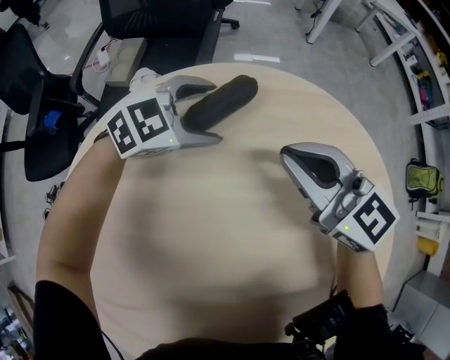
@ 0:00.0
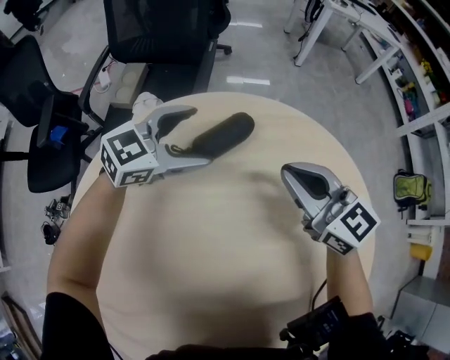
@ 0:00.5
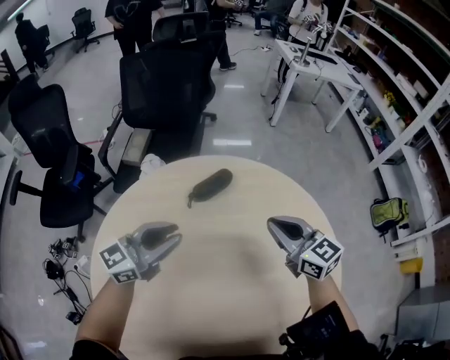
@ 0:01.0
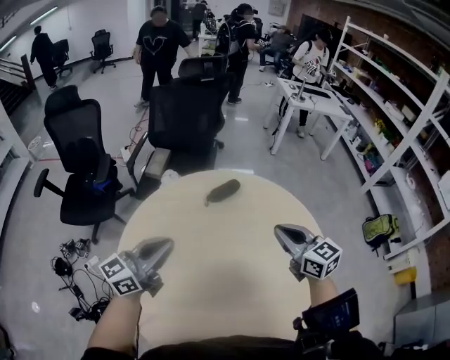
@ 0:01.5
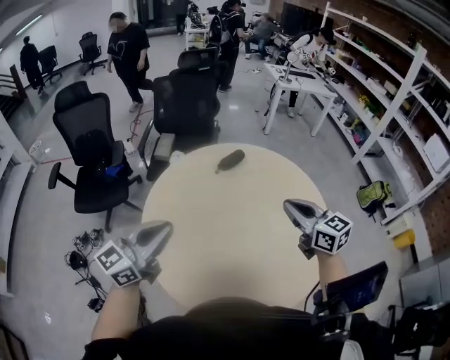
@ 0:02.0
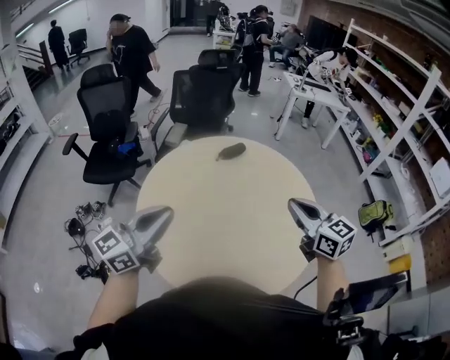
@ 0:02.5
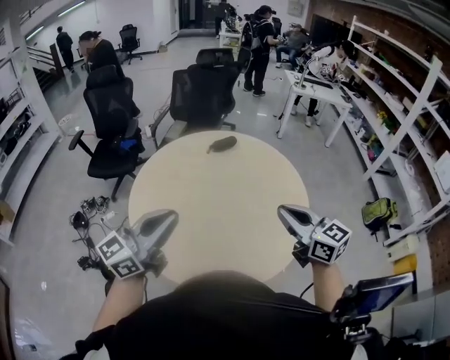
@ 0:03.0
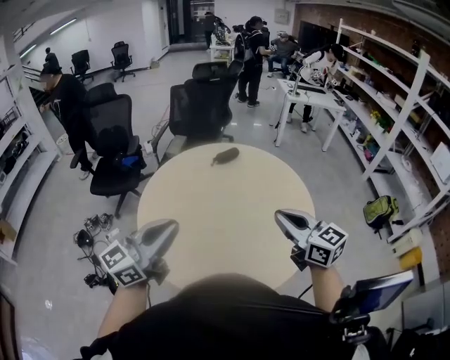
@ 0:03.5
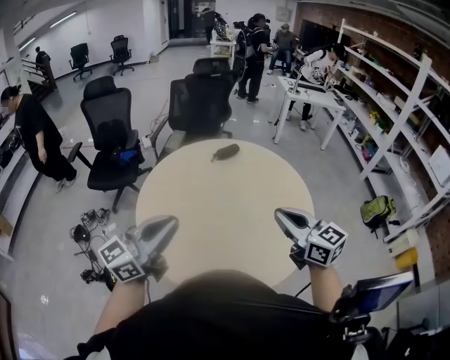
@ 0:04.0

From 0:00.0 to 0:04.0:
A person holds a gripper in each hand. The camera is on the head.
From 0:00.0 to 0:02.0: The grippers both shift backward and upward by approximately 60 cm. The right gripper turns by about 20 degrees; the left gripper angles its fingers upward, by some 40 degrees, and closes its fingers.
From 0:02.0 to 0:04.0: The right gripper moves backward, approximately 20 cm. Meanwhile the left gripper travels backward and to the right by about 25 cm.

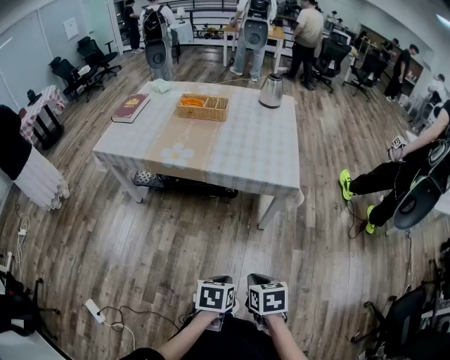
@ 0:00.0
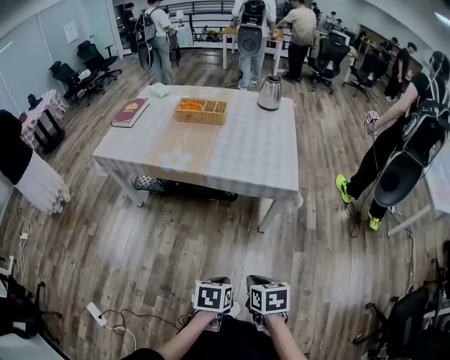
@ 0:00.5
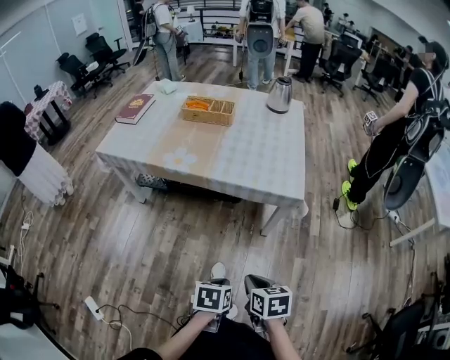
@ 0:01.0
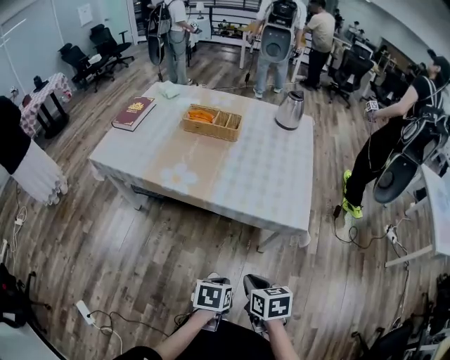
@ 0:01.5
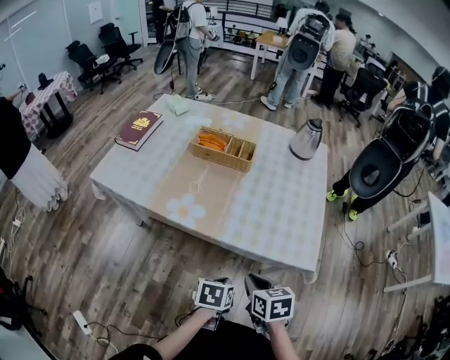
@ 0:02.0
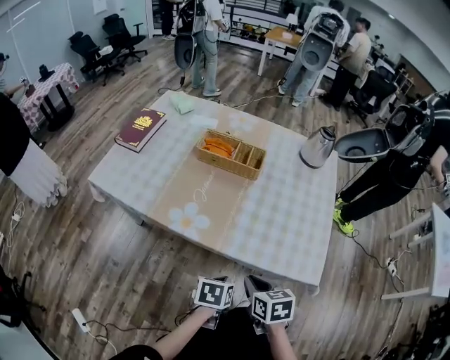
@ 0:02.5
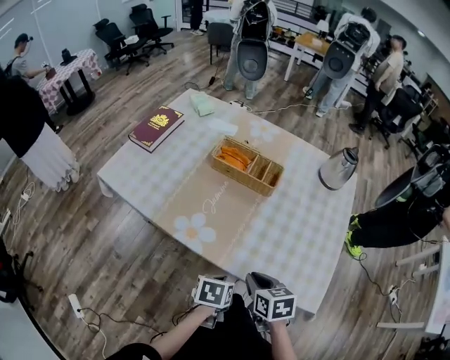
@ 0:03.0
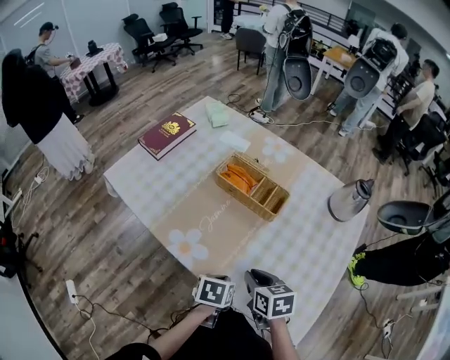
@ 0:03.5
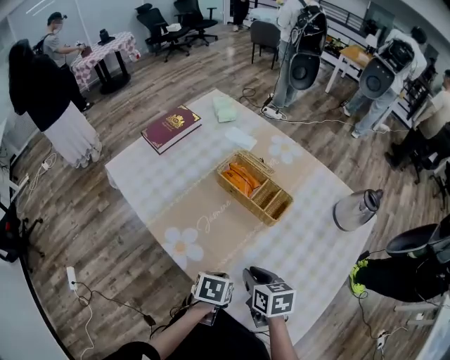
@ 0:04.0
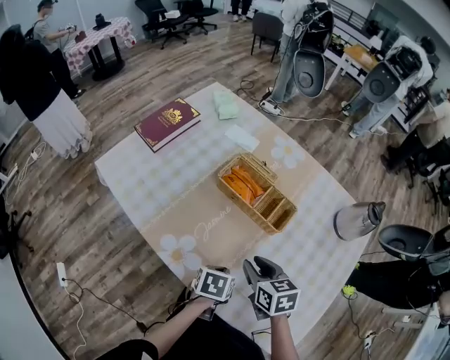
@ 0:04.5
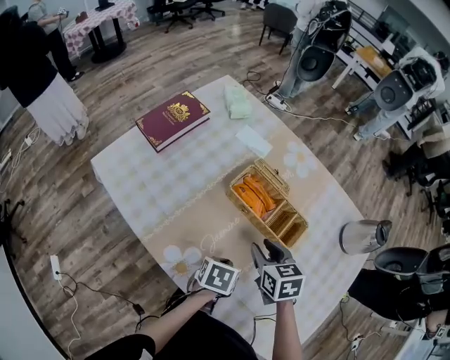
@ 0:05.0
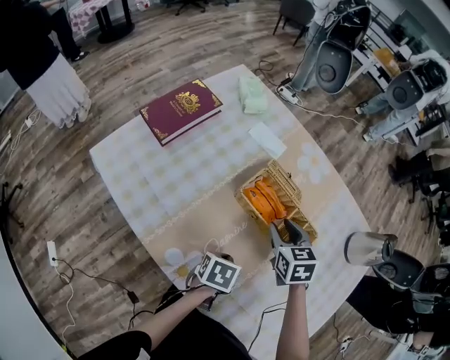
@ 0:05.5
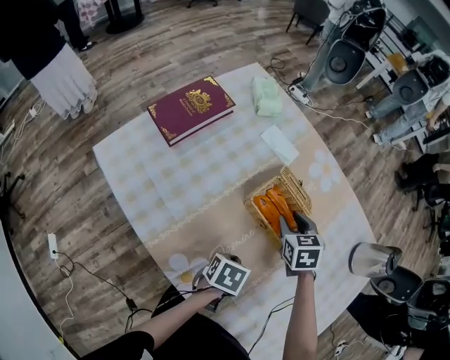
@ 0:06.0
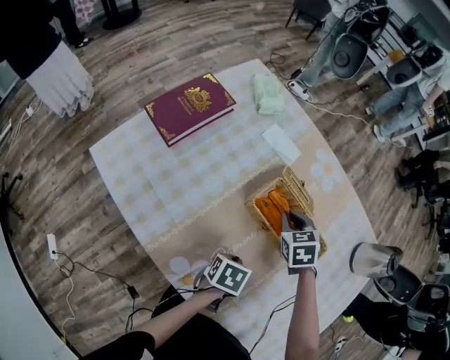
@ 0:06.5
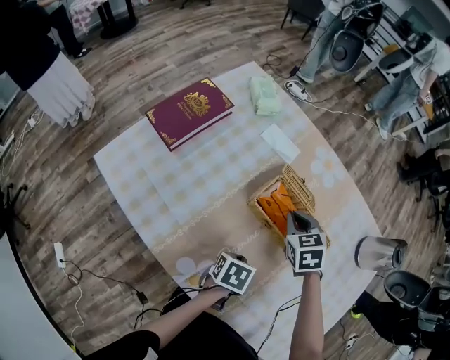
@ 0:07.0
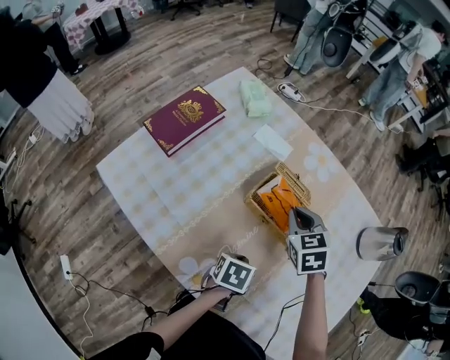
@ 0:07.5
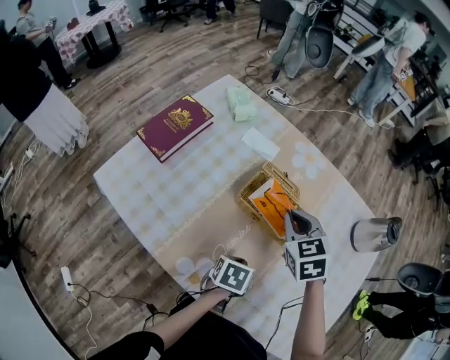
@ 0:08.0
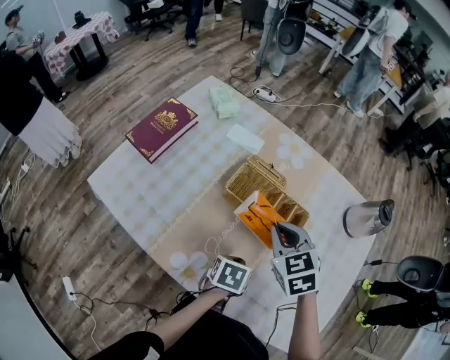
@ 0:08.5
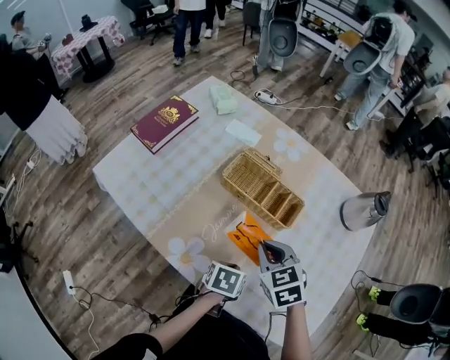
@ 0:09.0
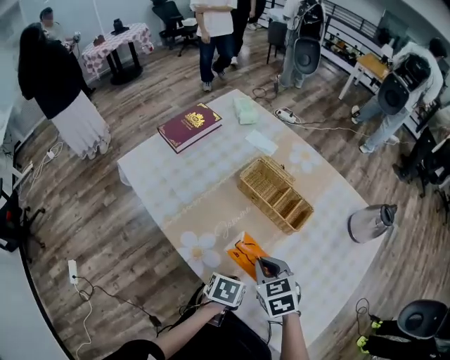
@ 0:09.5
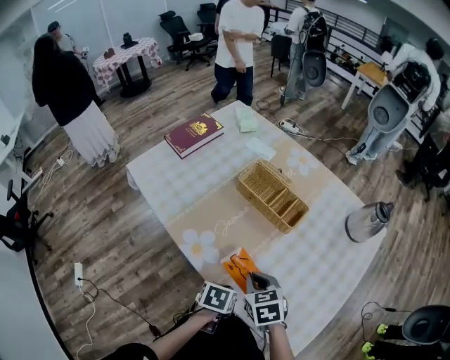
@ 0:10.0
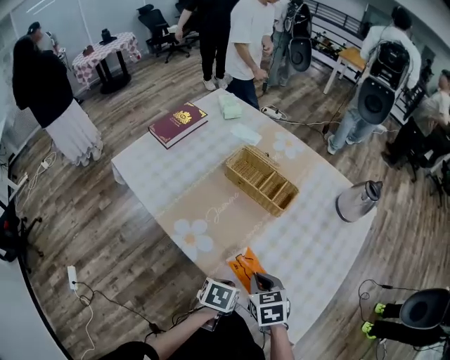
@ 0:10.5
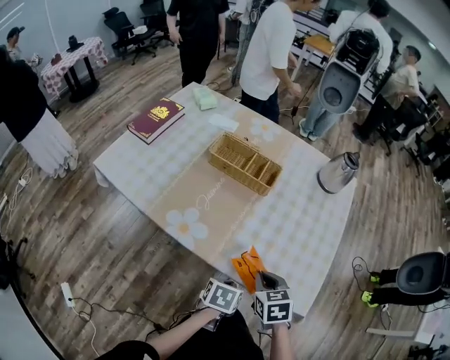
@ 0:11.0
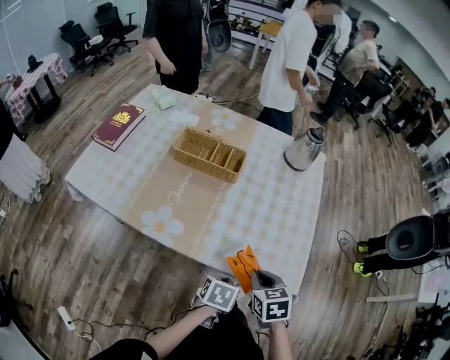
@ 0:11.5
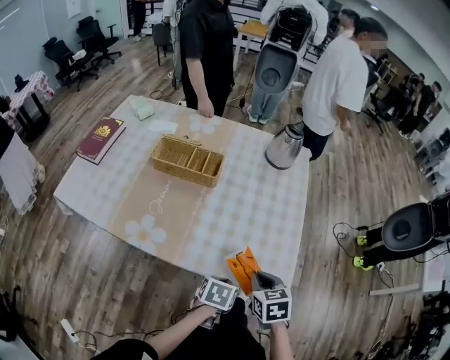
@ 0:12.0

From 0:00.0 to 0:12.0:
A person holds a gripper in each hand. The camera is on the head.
From 0:00.0 to 0:02.0: Both grippers move forward, roughly 30 cm.
From 0:02.0 to 0:04.0: Both grippers travel together forward, about 30 cm. The right gripper rotates some 20 degrees. The left gripper changes its angle by roughly 20 degrees.
From 0:04.0 to 0:06.0: The left gripper travels forward and to the left by some 20 cm. Meanwhile the right gripper shifts some 30 cm forward, turns by approximately 30 degrees, and opens its fingers.
From 0:06.0 to 0:08.0: The right gripper heads upward, covering roughly 10 cm, and closes.
From 0:08.0 to 0:10.0: The left gripper is displaced backward by some 20 cm. The right gripper moves backward, approximately 30 cm.
From 0:10.0 to 0:12.0: The left gripper moves roughly 15 cm, and rotates approximately 30 degrees, while the right gripper moves about 25 cm, and changes its angle by approximately 40 degrees.

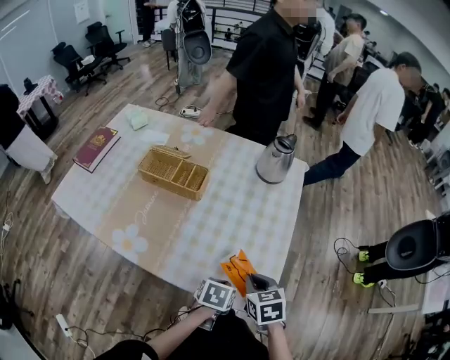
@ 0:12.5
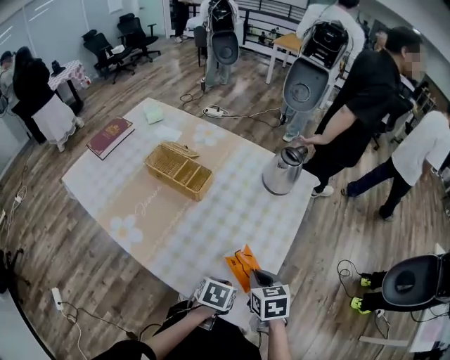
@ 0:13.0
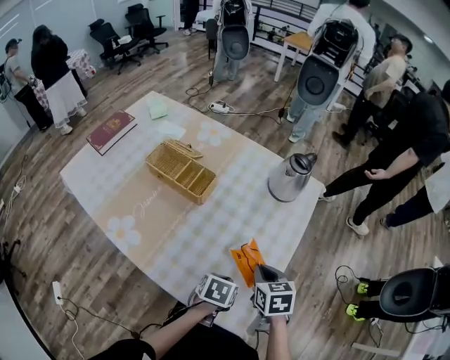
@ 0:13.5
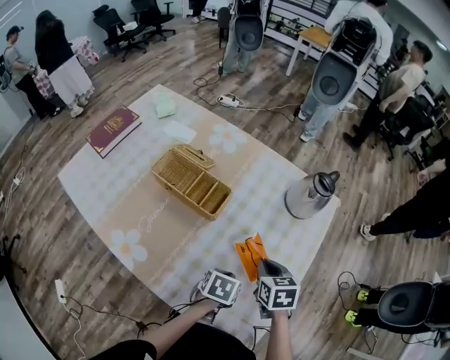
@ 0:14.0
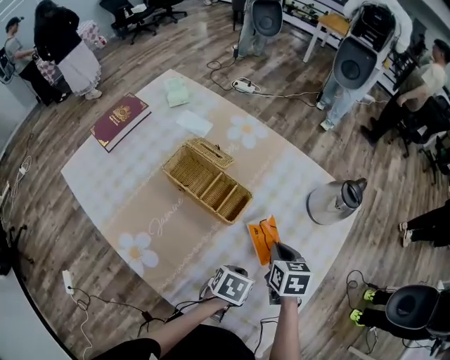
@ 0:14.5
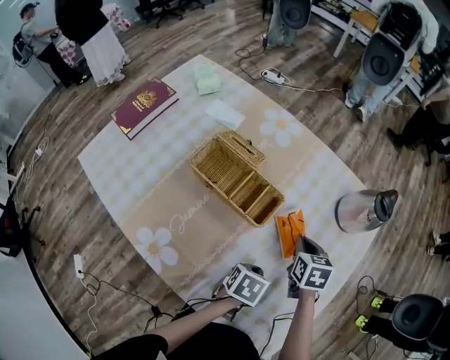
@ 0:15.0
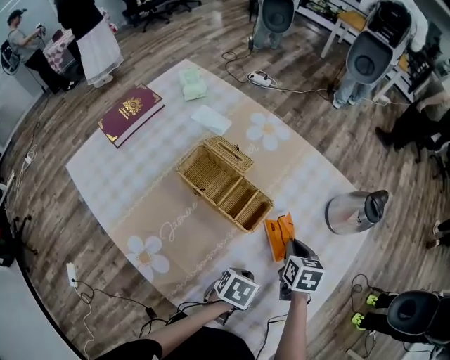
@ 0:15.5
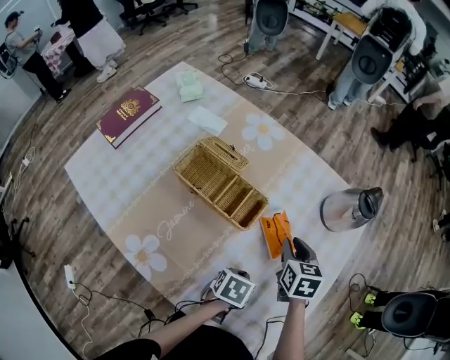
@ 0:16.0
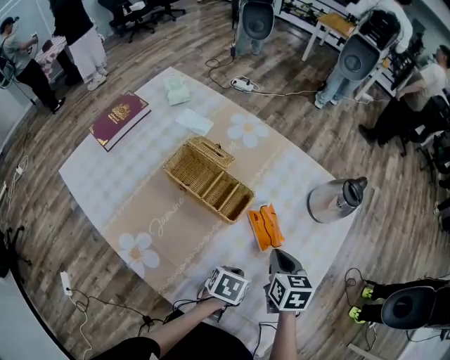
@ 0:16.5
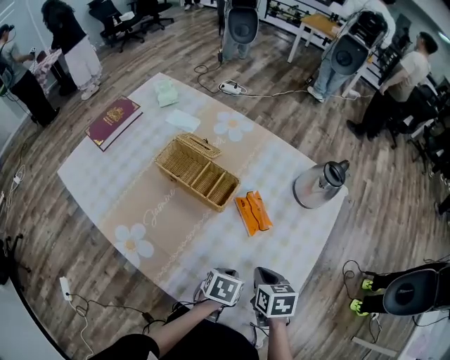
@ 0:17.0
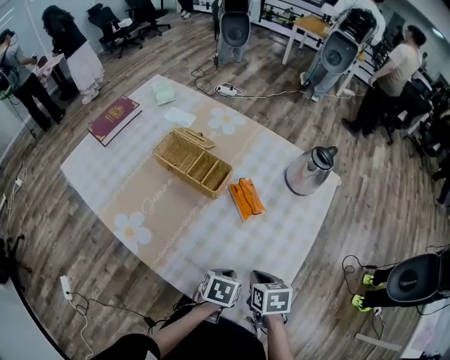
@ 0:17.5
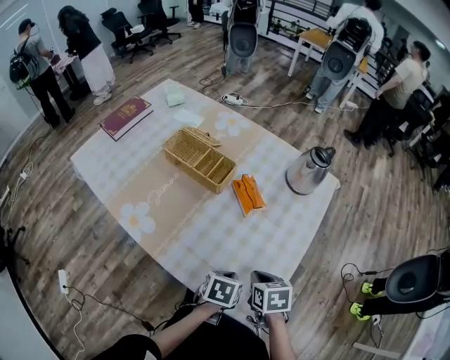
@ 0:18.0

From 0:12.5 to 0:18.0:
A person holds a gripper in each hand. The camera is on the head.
From 0:12.5 to 0:14.5: The two grippers go approximately 25 cm forward.
From 0:14.5 to 0:16.0: The grippers move only a little.
From 0:16.0 to 0:18.0: The right gripper goes about 25 cm backward, and closes its fingers; the left gripper heads backward and to the right, covering some 15 cm.

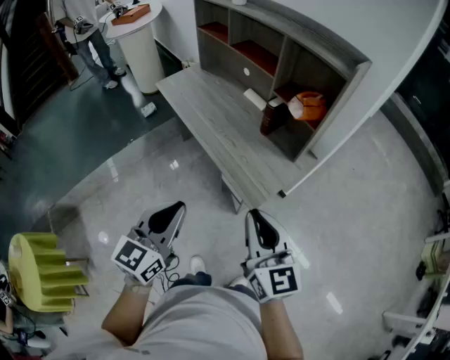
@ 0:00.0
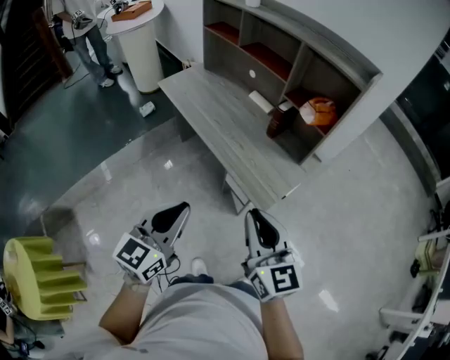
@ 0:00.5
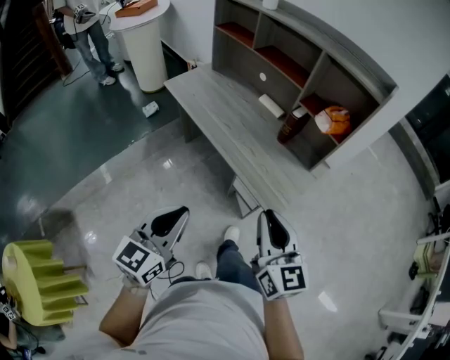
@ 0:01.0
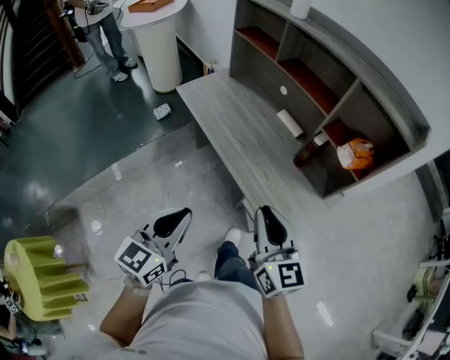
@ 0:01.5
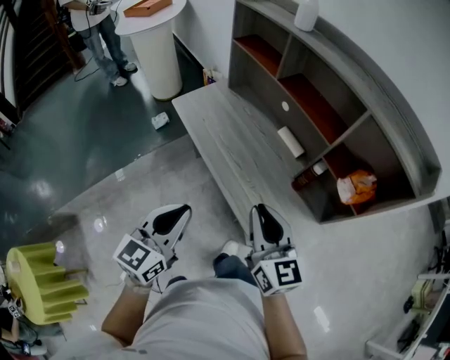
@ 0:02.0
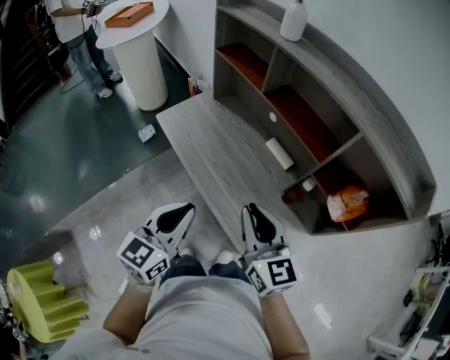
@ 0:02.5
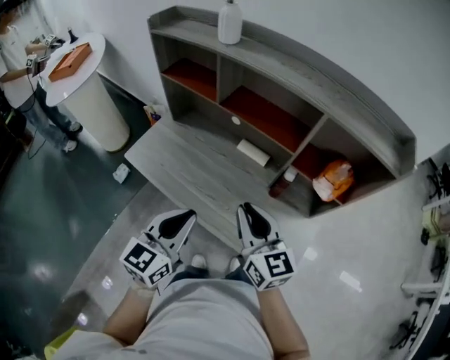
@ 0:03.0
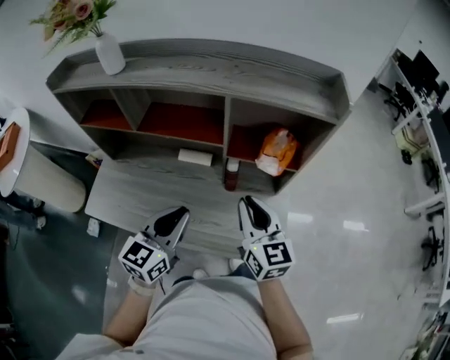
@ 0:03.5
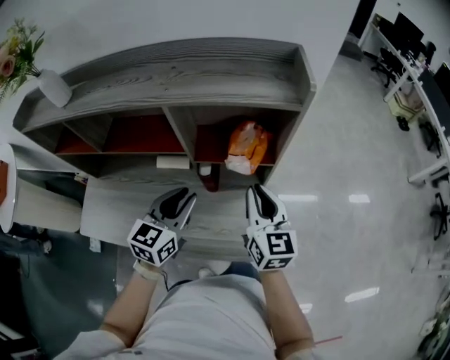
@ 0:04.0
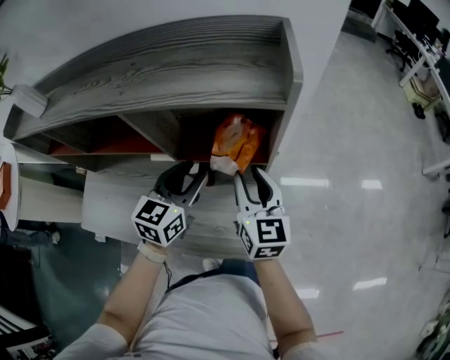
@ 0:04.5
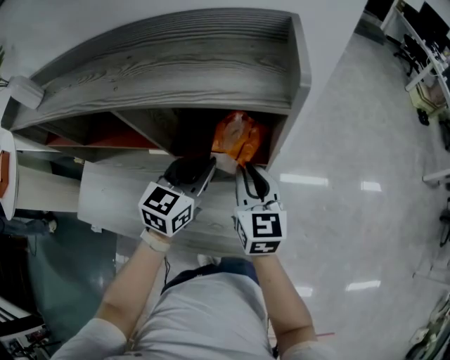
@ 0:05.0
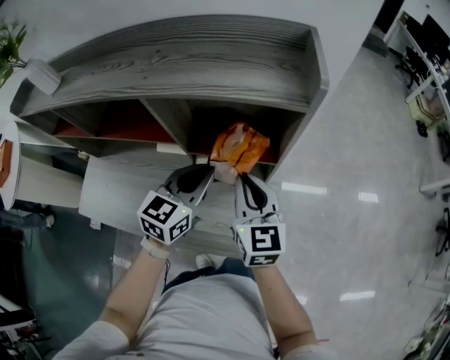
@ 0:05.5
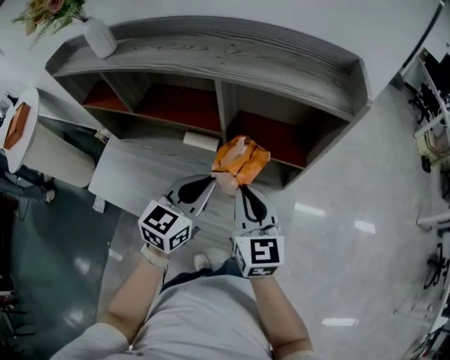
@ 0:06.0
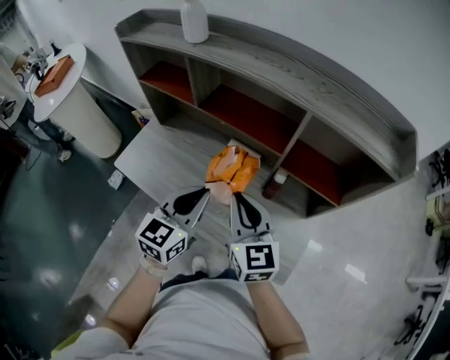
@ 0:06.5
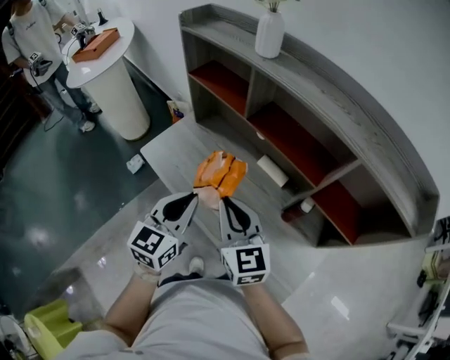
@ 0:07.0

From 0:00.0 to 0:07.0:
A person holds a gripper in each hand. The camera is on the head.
From 0:00.0 to 0:02.0: Both grippers travel together forward and to the left, roughly 35 cm.
From 0:02.0 to 0:03.5: The left gripper moves approximately 25 cm, and rotates some 40 degrees, while the right gripper ends up approximately 15 cm from where it was, and swivels about 40 degrees.
From 0:03.5 to 0:05.0: The left gripper moves forward and to the right, about 30 cm, and opens, then closes once more, while the right gripper shifts approximately 20 cm forward, to the right and downward.
From 0:05.0 to 0:07.0: The pair of grippers is taken approximately 40 cm. The left gripper turns by some 40 degrees. The right gripper changes its angle by some 50 degrees.
